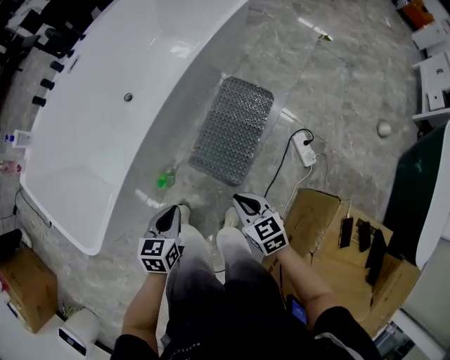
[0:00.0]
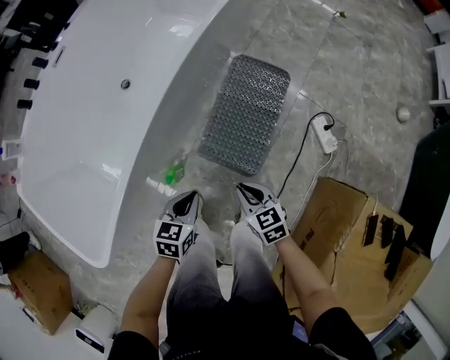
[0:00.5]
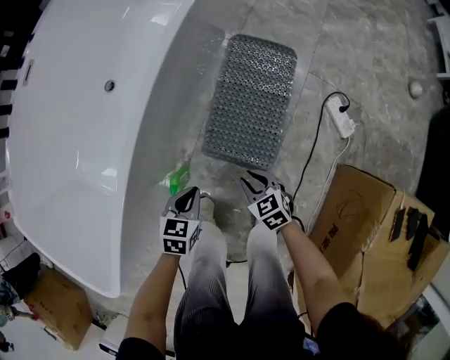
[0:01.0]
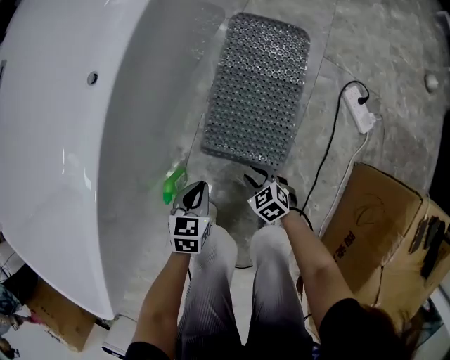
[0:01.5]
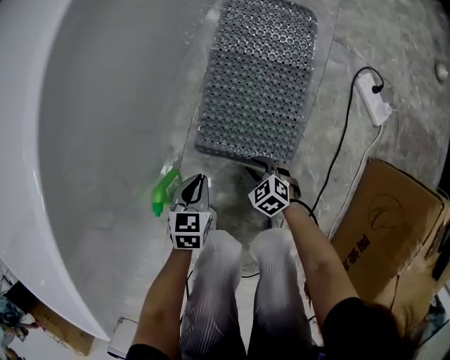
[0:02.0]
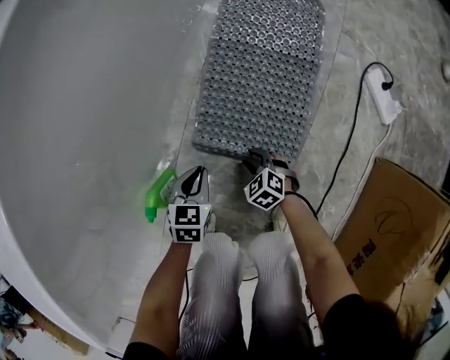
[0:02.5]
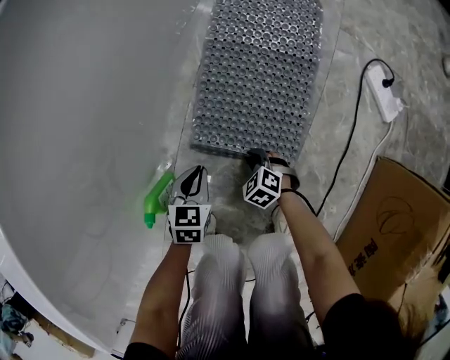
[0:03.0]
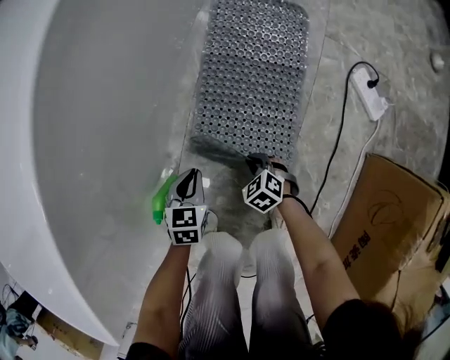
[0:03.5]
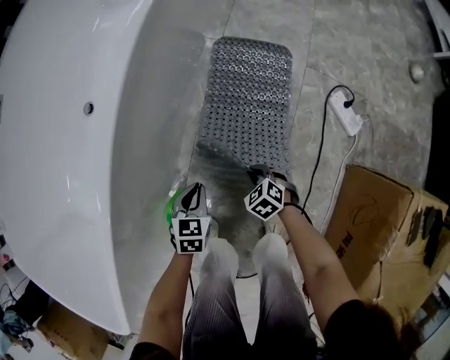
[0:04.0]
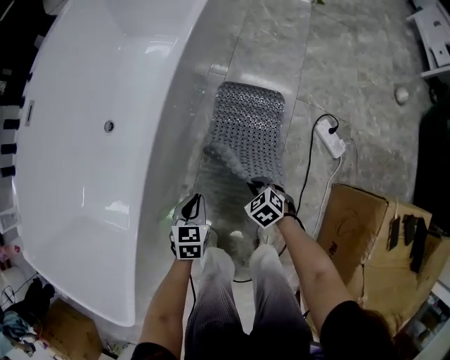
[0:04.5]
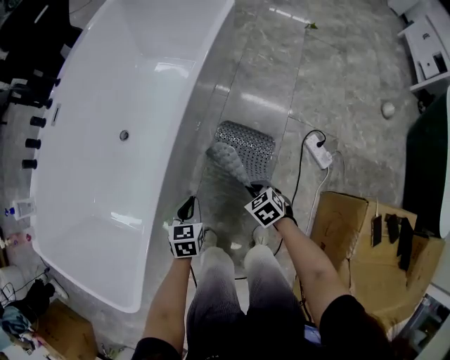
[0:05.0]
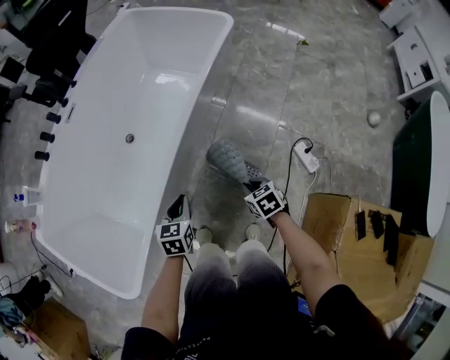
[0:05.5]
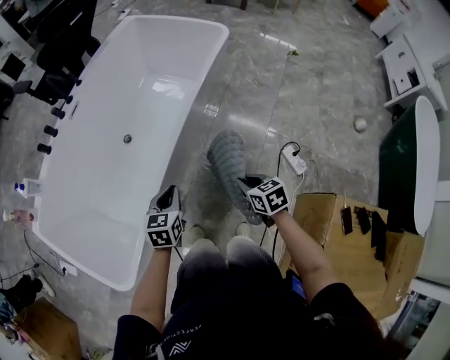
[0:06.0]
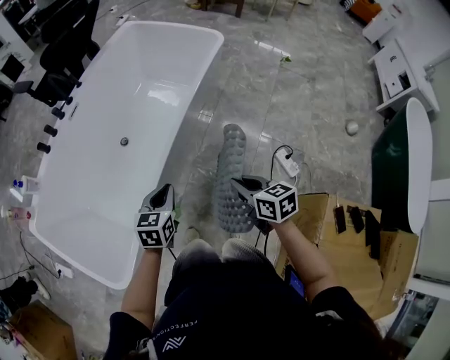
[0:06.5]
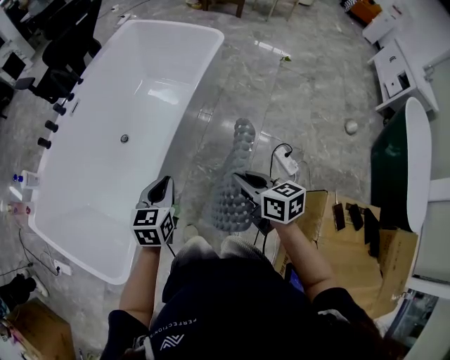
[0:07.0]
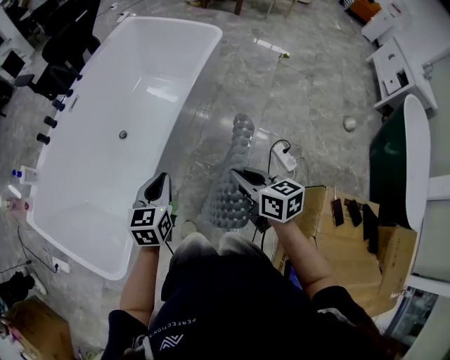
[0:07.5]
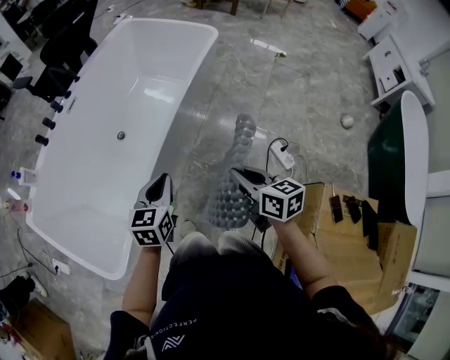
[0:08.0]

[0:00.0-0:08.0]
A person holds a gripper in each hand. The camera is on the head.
0:00.0 to 0:02.0: Both grippers move downward, approximately 50 cm. The left gripper changes its angle by roughly 20 degrees, while the right gripper turns by some 30 degrees, and opens.
0:02.0 to 0:04.0: Both grippers move upward and forward, some 15 cm. The right gripper closes its fingers.
0:04.0 to 0:06.0: Both grippers travel together upward, some 40 cm. The right gripper turns by some 30 degrees. Meanwhile the left gripper turns by some 20 degrees.
0:06.0 to 0:08.0: The right gripper goes some 15 cm upward, and turns by roughly 20 degrees; the left gripper shifts roughly 10 cm upward.

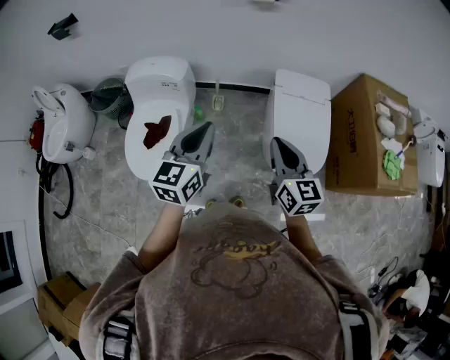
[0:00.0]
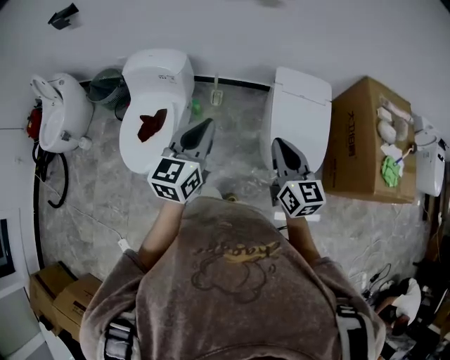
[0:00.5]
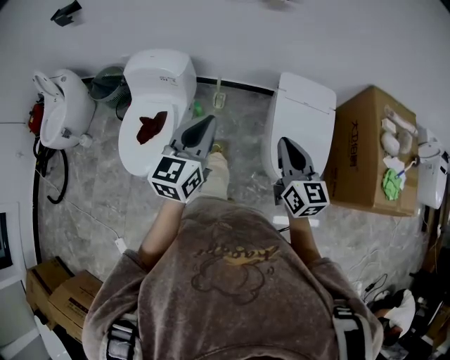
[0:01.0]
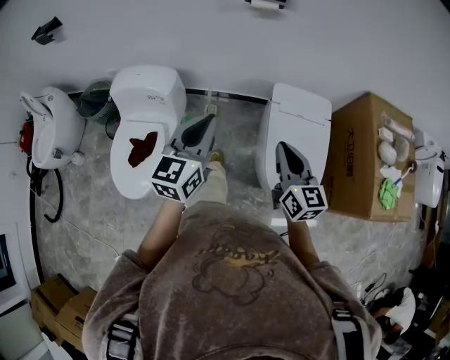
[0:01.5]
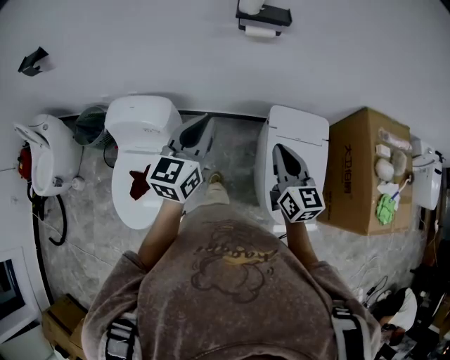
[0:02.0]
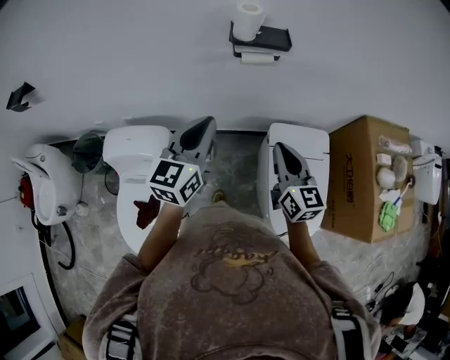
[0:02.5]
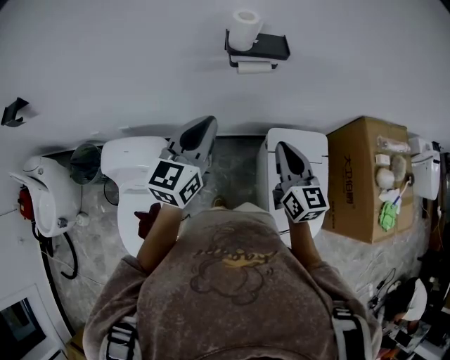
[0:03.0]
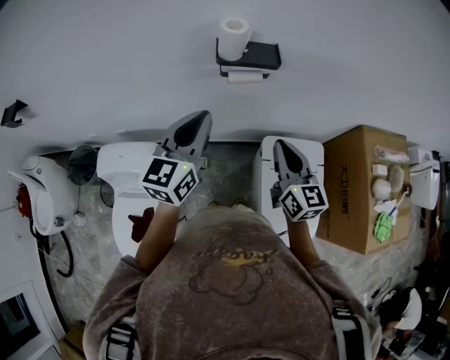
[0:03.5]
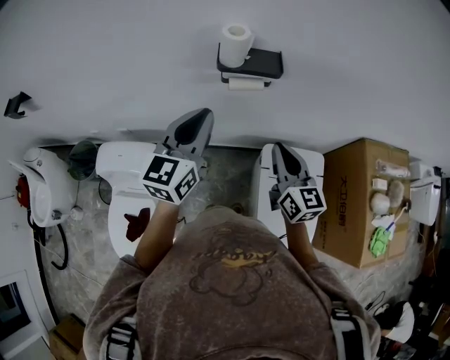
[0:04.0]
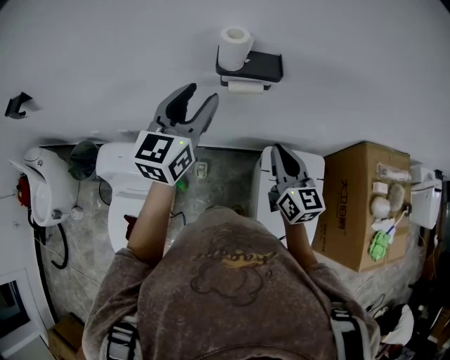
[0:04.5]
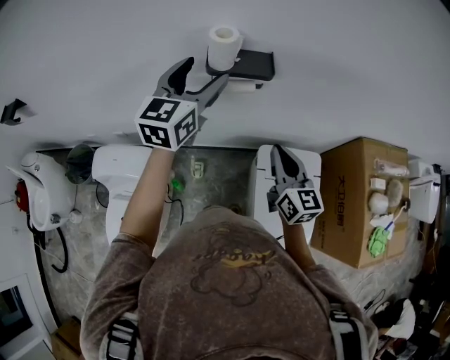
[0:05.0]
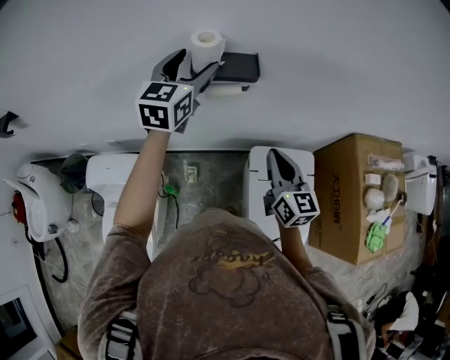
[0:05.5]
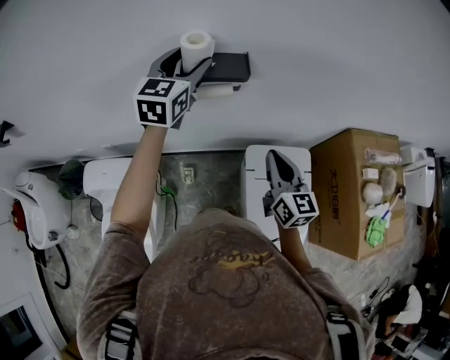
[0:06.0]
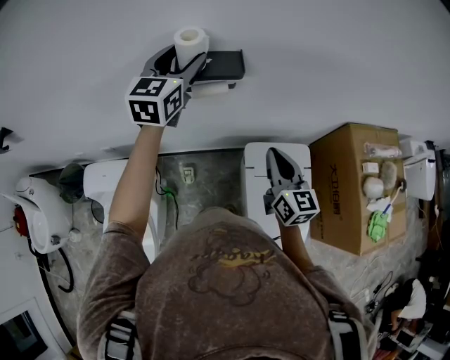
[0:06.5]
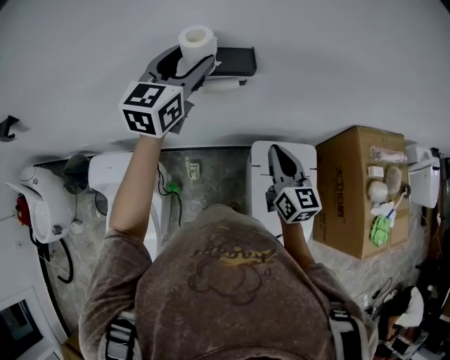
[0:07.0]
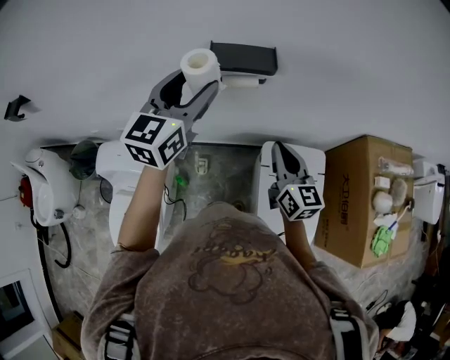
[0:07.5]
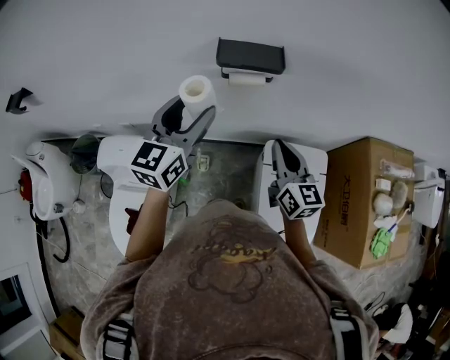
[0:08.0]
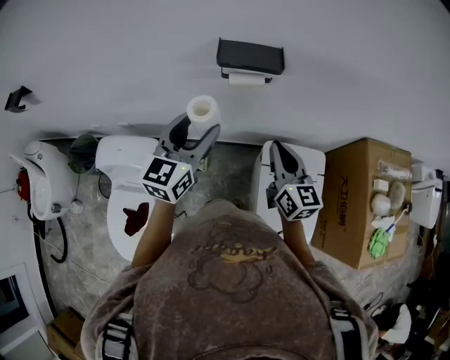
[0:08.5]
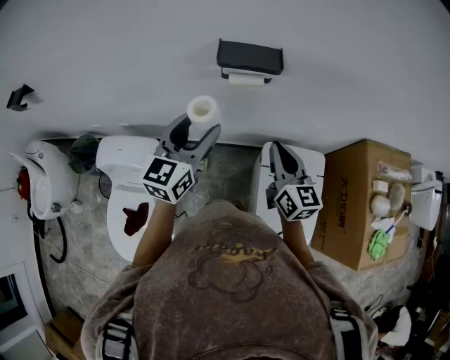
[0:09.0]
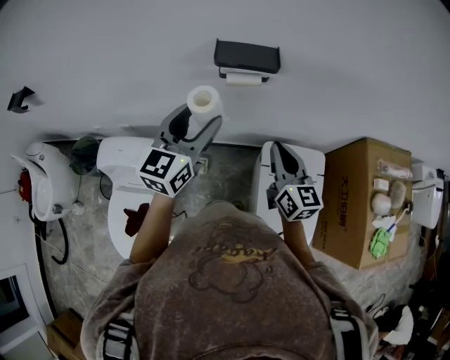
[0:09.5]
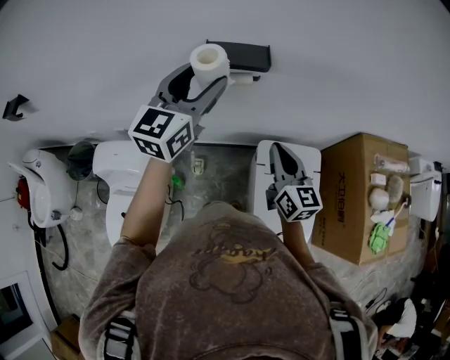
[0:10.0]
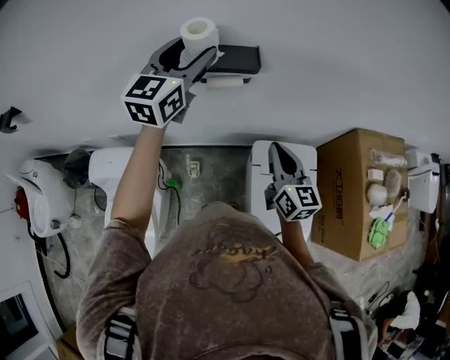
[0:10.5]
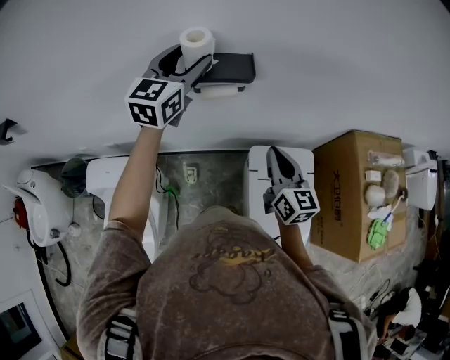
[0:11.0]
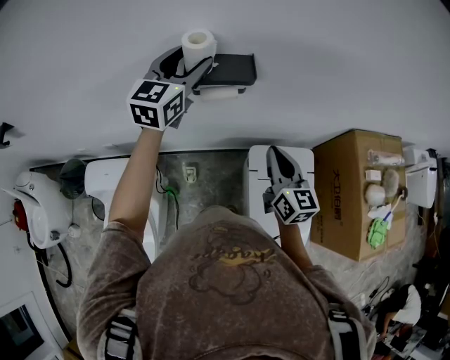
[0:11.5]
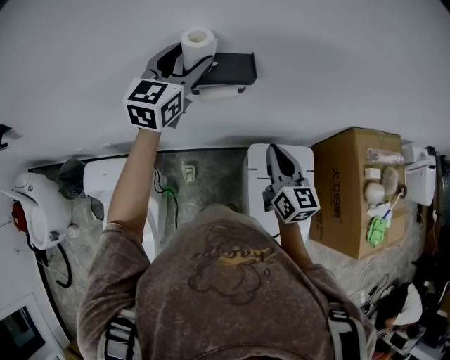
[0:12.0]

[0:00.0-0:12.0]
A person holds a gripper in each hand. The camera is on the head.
0:00.0 to 0:02.0: Both grippers travel together forward, roughly 30 cm.
0:02.0 to 0:04.0: The two grippers go about 20 cm forward.
0:04.0 to 0:06.0: The right gripper shifts roughly 5 cm to the right. Meanwhile the left gripper goes some 20 cm forward, and opens its fingers.
0:06.0 to 0:08.0: The left gripper goes some 15 cm backward, while the right gripper moves to the left, approximately 5 cm.
0:08.0 to 0:10.0: The left gripper is displaced upward by roughly 5 cm.
0:10.0 to 0:12.0: The left gripper goes about 15 cm forward, while the right gripper is displaced forward by about 5 cm.

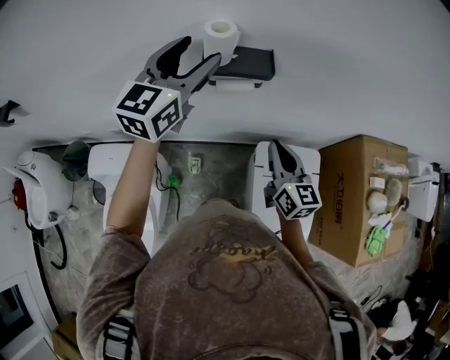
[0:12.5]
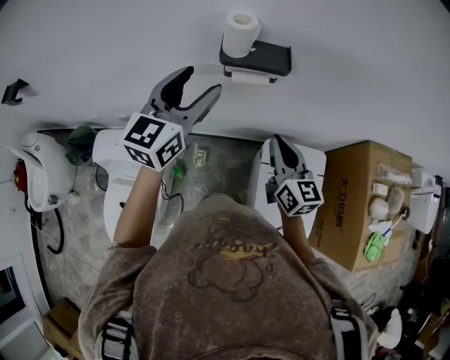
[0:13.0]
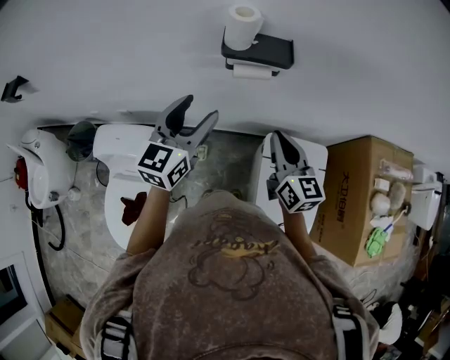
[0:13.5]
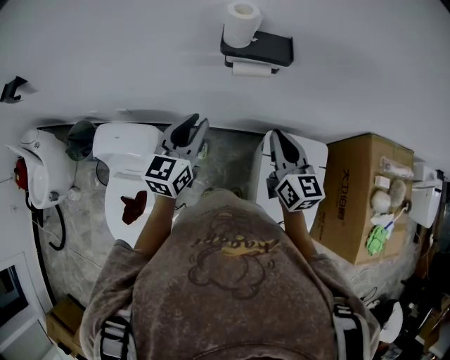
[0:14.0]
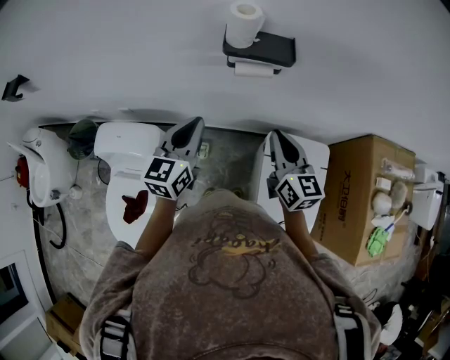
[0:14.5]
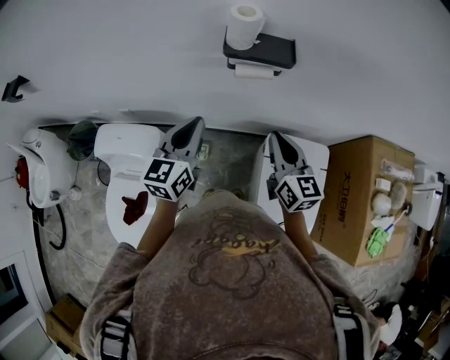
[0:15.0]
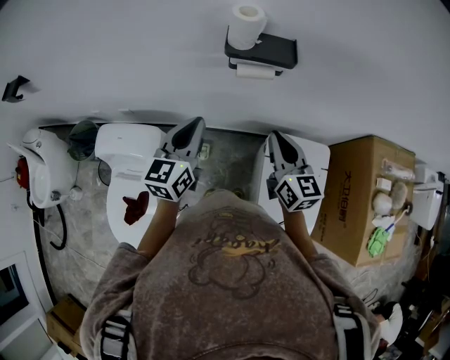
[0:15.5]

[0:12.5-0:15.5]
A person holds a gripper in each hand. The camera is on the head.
0:12.5 to 0:14.0: The left gripper is displaced downward and backward by about 25 cm, and closes its fingers.
0:14.0 to 0:15.5: Neither gripper changes place.

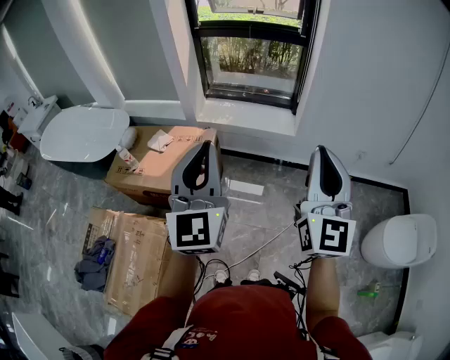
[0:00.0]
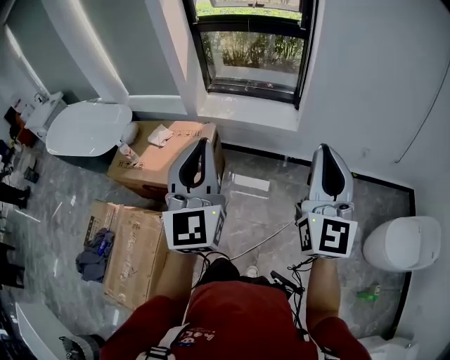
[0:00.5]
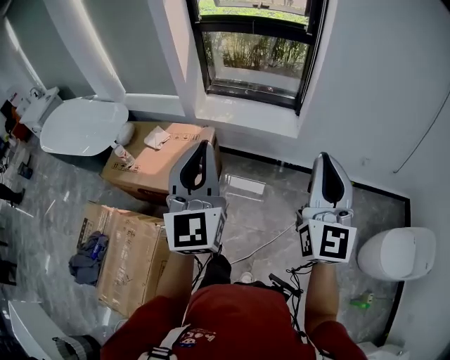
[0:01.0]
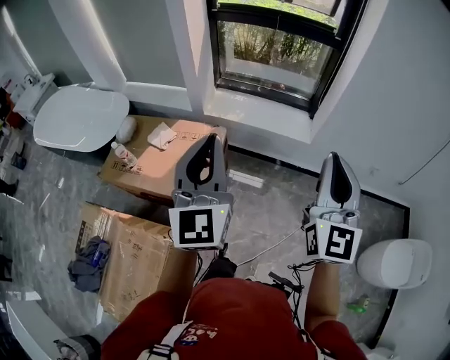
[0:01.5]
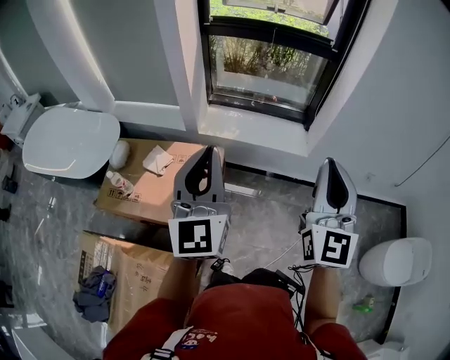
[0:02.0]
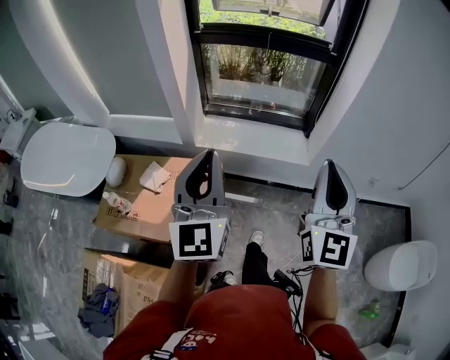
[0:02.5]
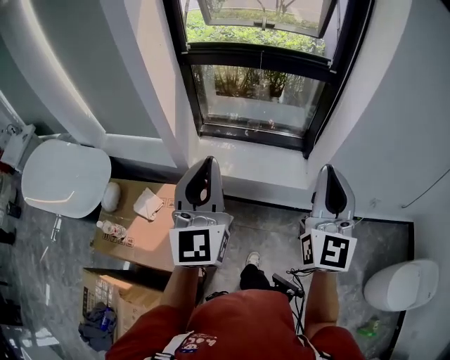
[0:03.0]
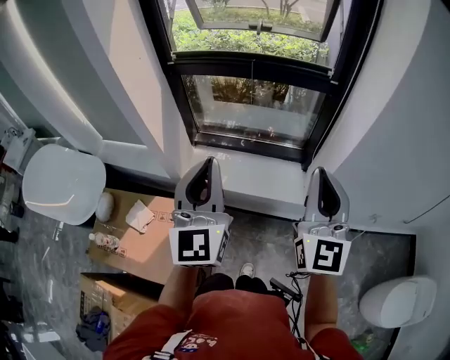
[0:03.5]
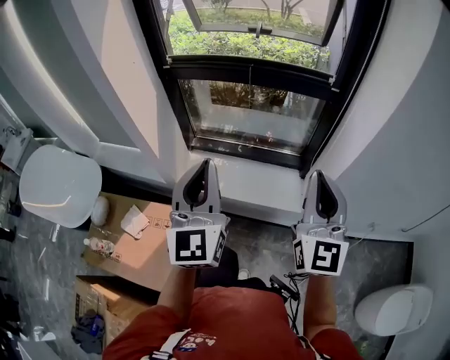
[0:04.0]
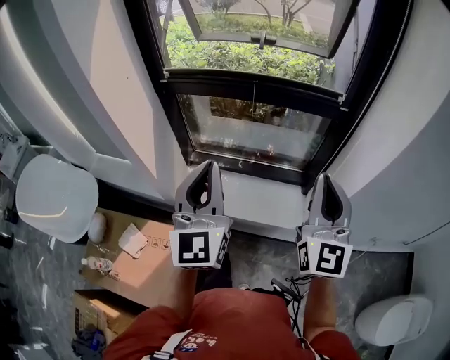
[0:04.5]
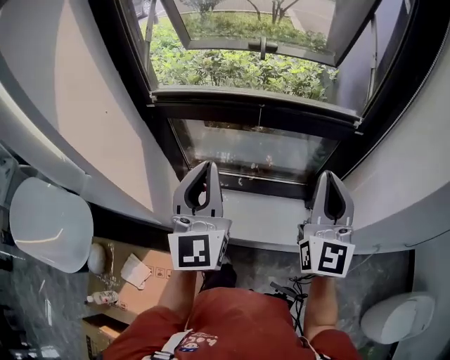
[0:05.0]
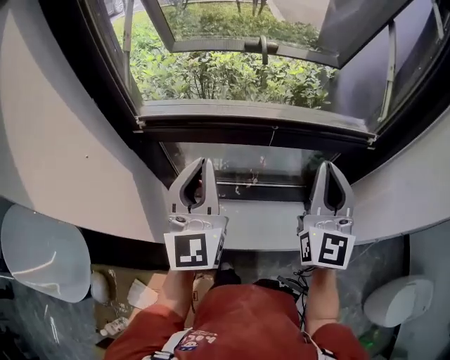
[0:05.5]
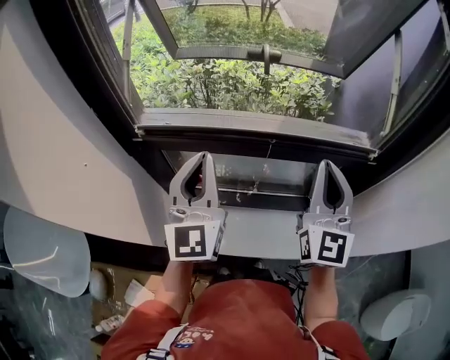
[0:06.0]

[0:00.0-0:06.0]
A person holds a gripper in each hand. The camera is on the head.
0:00.0 to 0:02.0: Both grippers travel together forward and to the left, approximately 25 cm.
0:02.0 to 0:04.0: The two grippers go approximately 35 cm forward.
0:04.0 to 0:06.0: Both grippers travel together forward, approximately 35 cm.
